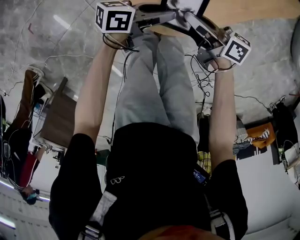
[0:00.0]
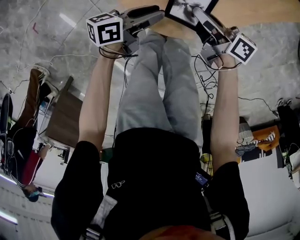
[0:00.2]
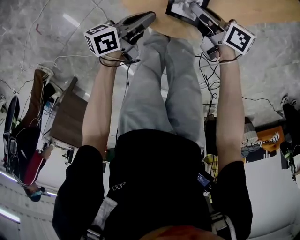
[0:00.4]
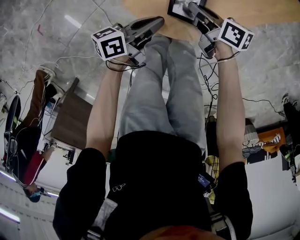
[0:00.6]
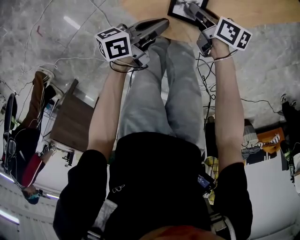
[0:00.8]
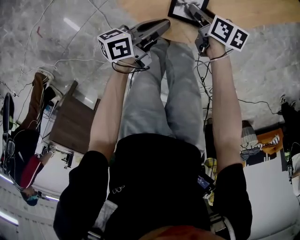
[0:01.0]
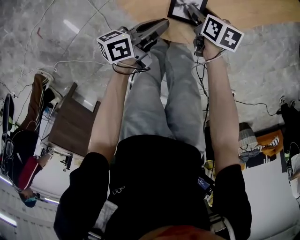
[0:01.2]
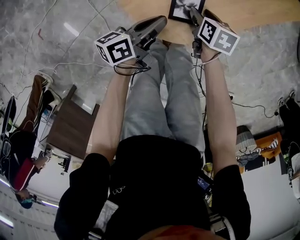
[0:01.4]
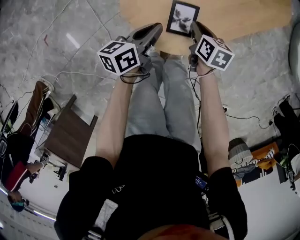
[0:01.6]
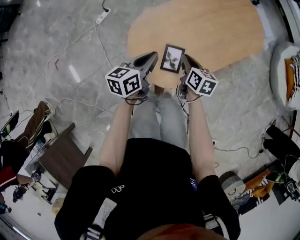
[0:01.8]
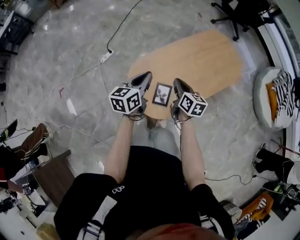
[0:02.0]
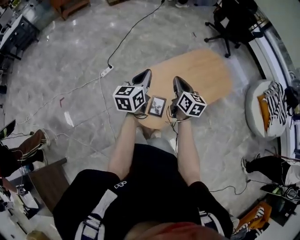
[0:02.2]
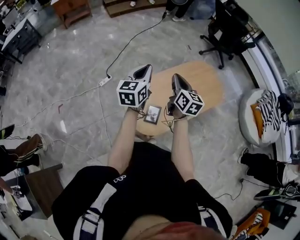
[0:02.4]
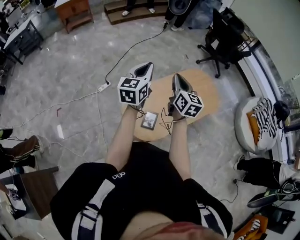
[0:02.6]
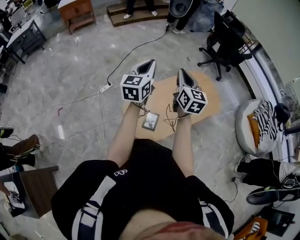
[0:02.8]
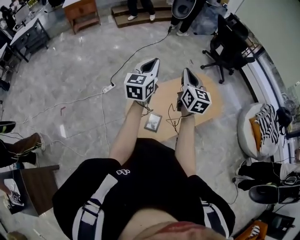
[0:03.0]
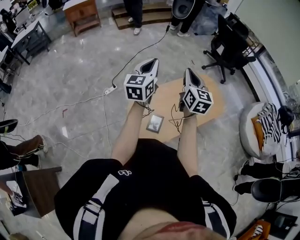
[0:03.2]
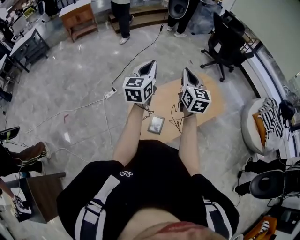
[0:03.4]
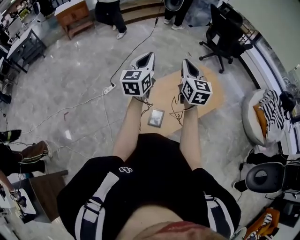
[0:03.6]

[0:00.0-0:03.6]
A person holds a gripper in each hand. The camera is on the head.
0:00.0 to 0:01.8: The right gripper goes approximately 10 cm upward, swivels about 50 degrees, and opens and closes again. The left gripper shifts some 20 cm upward, swivels approximately 40 degrees, and closes.
0:01.8 to 0:03.6: The grippers both shift upward by approximately 40 cm. The left gripper swivels approximately 50 degrees. Meanwhile the right gripper angles its fingers upward, by roughly 40 degrees.

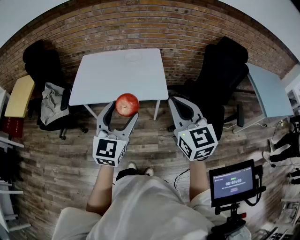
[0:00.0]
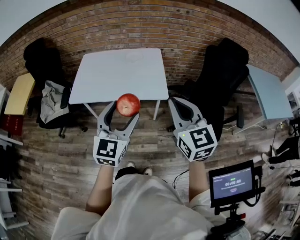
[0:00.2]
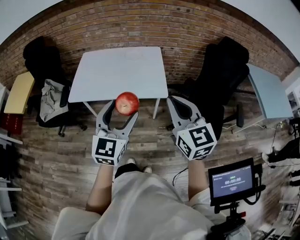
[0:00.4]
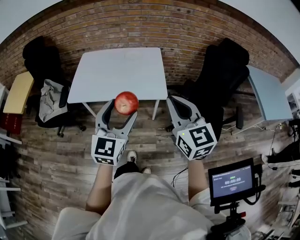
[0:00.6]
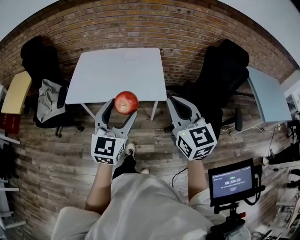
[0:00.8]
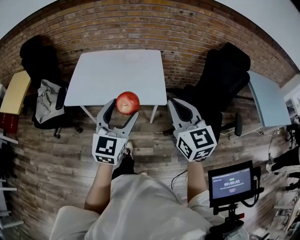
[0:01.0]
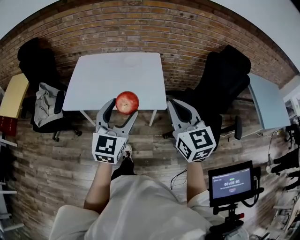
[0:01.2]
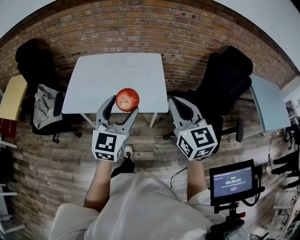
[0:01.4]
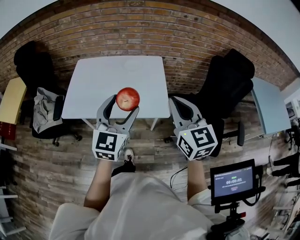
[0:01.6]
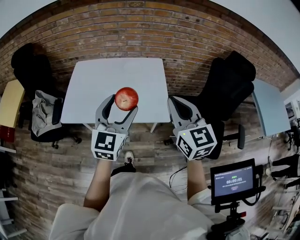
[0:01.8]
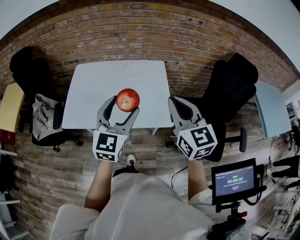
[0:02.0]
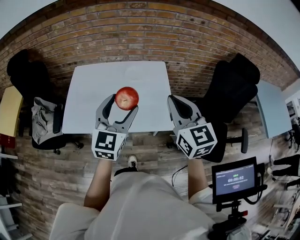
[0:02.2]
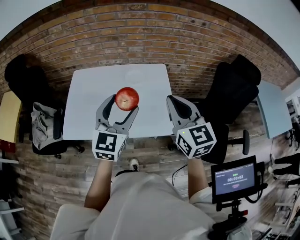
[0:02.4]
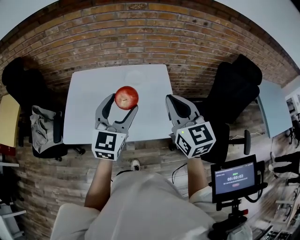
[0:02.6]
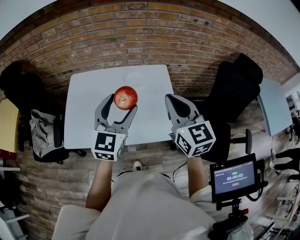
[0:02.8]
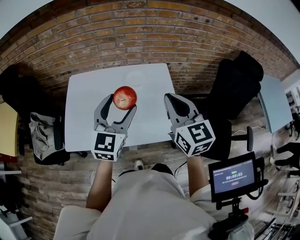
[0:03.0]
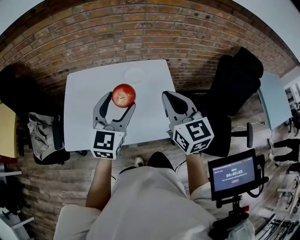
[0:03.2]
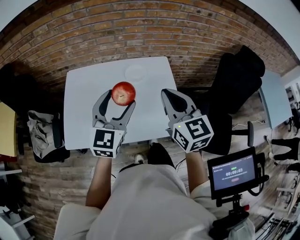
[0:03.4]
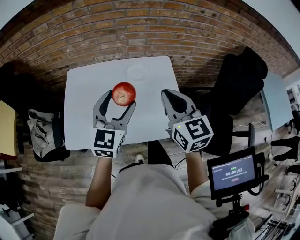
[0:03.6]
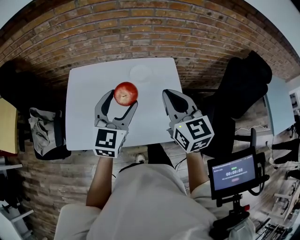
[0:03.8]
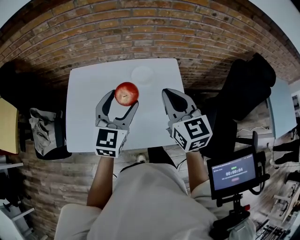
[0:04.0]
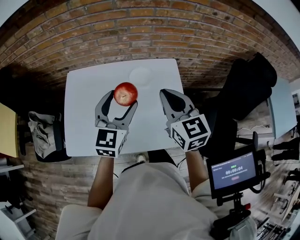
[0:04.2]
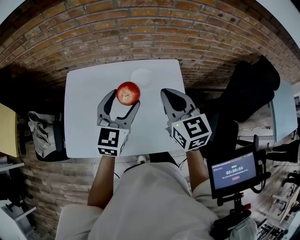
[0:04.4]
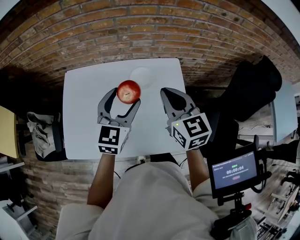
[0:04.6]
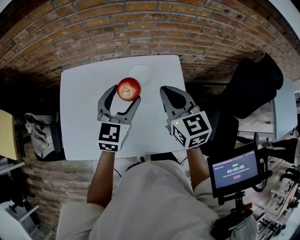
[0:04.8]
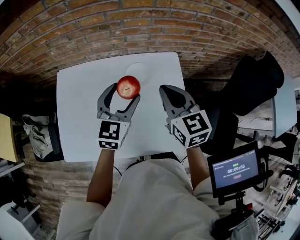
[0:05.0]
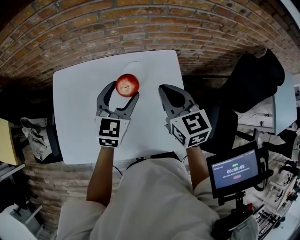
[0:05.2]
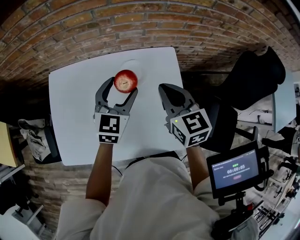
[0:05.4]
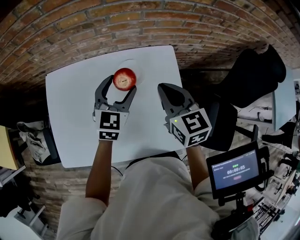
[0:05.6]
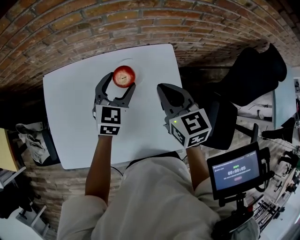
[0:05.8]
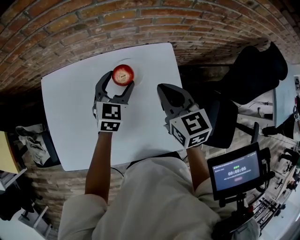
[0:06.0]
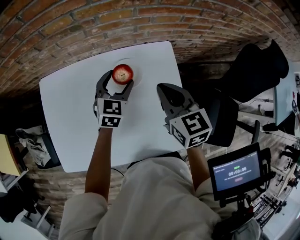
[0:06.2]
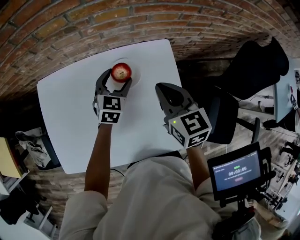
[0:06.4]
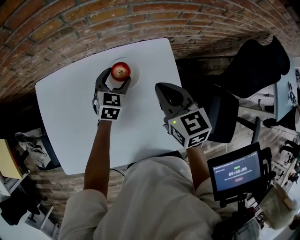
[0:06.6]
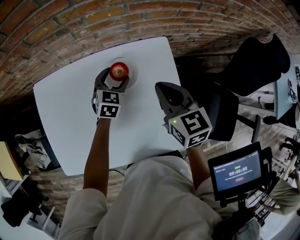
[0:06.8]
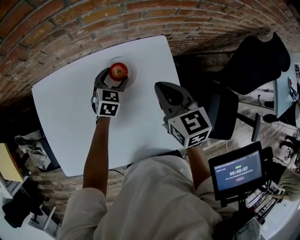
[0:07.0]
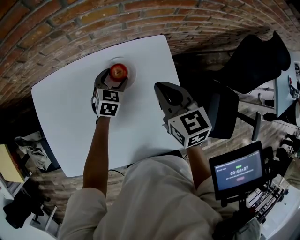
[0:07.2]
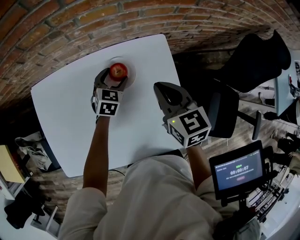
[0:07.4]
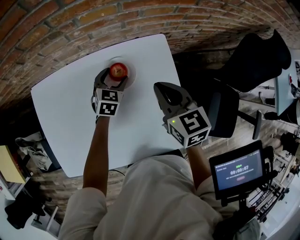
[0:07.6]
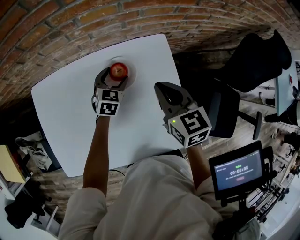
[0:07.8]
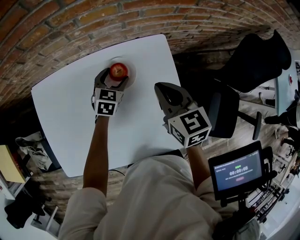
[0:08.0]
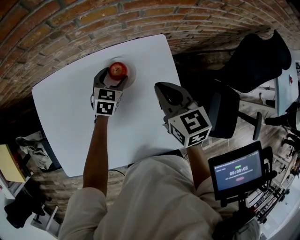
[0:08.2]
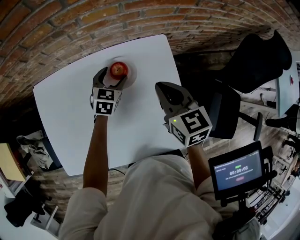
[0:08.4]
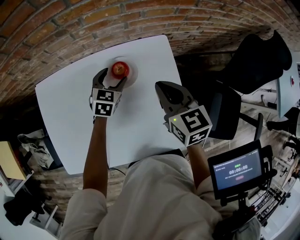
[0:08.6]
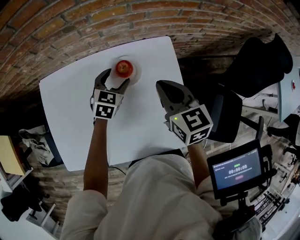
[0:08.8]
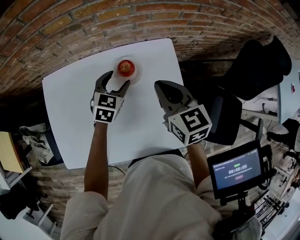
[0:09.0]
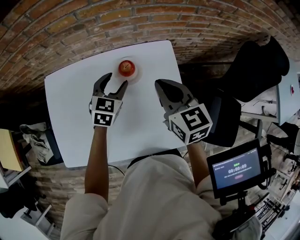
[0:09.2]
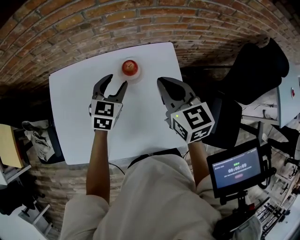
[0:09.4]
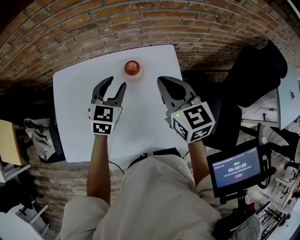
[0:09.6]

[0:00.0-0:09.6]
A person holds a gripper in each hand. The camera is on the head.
0:00.0 to 0:01.6: The two grippers go approximately 15 cm forward.
0:01.6 to 0:03.2: The right gripper goes approximately 25 cm forward and to the left. Meanwhile the left gripper goes about 25 cm forward.
0:03.2 to 0:04.8: Both grippers travel together forward and downward, about 20 cm.
0:04.8 to 0:06.4: The right gripper moves downward and forward, some 10 cm. Meanwhile the left gripper moves downward and forward, some 25 cm.
0:06.4 to 0:08.0: The left gripper is displaced downward by about 5 cm.
0:08.0 to 0:09.6: The left gripper travels upward and backward by roughly 20 cm, and closes up, while the right gripper goes roughly 10 cm upward and backward.

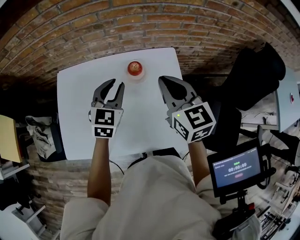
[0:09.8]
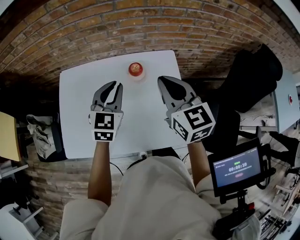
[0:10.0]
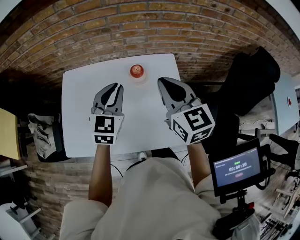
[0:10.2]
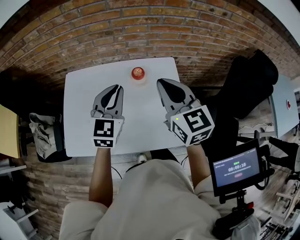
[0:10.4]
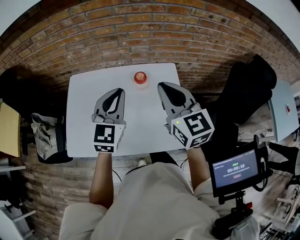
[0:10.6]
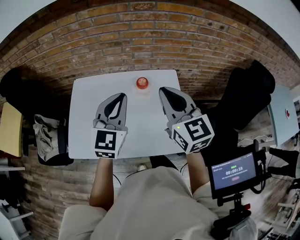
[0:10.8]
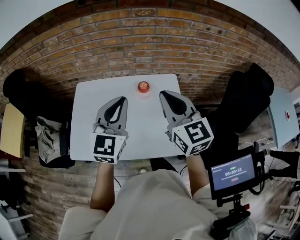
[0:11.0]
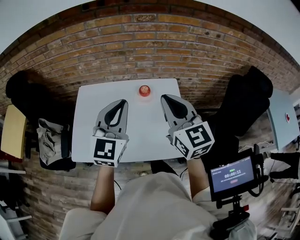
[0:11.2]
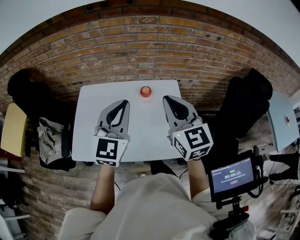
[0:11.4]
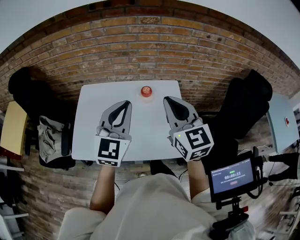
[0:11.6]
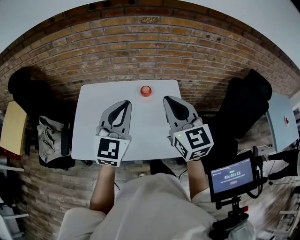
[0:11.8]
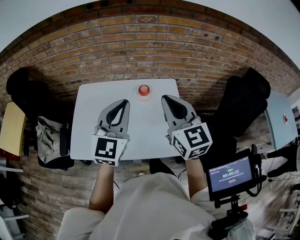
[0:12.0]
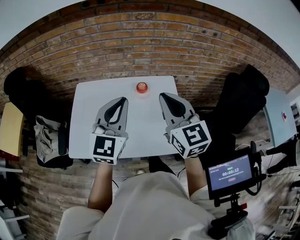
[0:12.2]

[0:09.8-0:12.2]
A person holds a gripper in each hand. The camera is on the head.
0:09.8 to 0:11.0: The left gripper moves upward and backward, approximately 20 cm, and rotates some 20 degrees; the right gripper is displaced backward and upward by roughly 15 cm.
0:11.0 to 0:12.2: There are only small adjustments of the grippers.

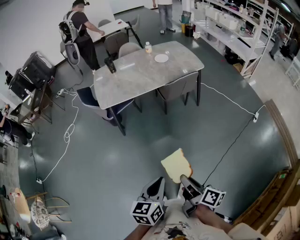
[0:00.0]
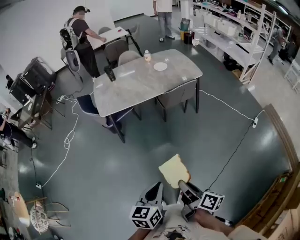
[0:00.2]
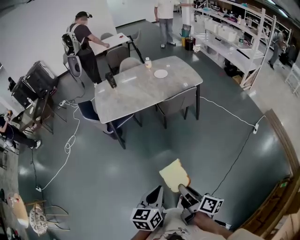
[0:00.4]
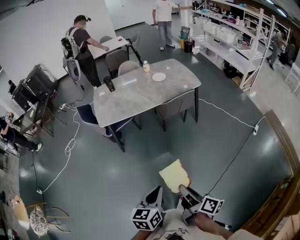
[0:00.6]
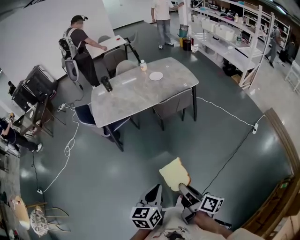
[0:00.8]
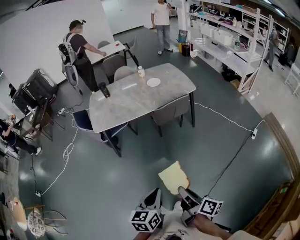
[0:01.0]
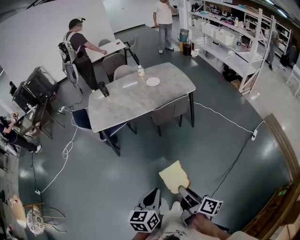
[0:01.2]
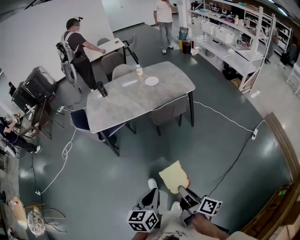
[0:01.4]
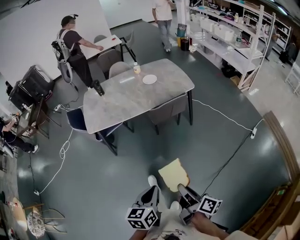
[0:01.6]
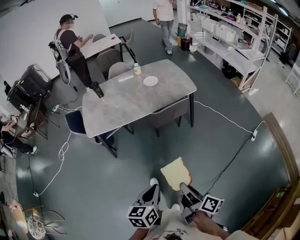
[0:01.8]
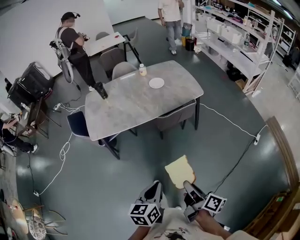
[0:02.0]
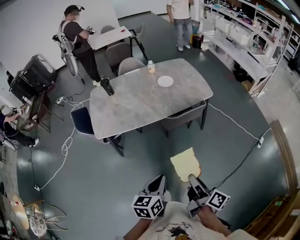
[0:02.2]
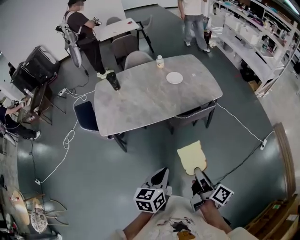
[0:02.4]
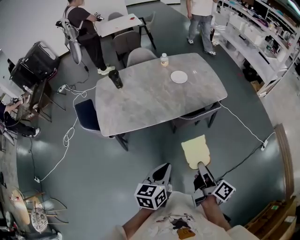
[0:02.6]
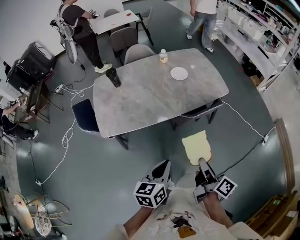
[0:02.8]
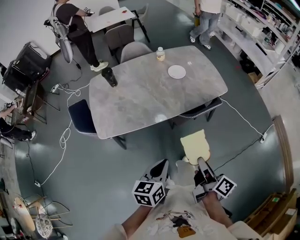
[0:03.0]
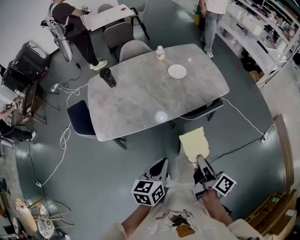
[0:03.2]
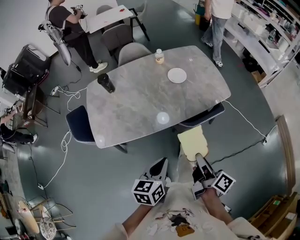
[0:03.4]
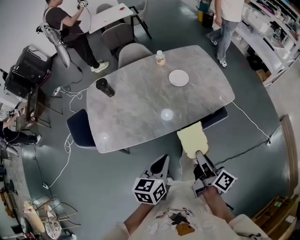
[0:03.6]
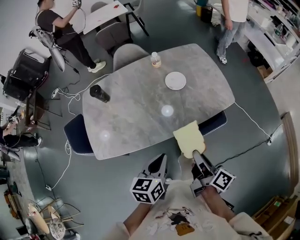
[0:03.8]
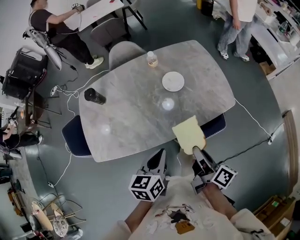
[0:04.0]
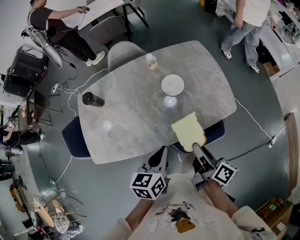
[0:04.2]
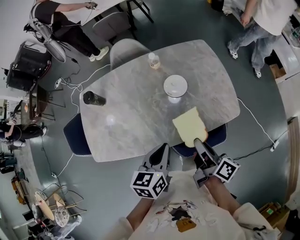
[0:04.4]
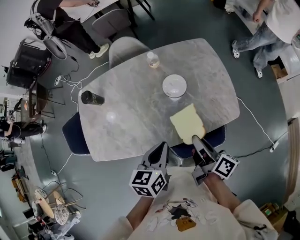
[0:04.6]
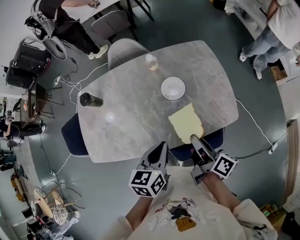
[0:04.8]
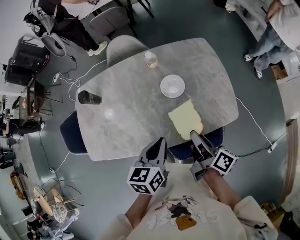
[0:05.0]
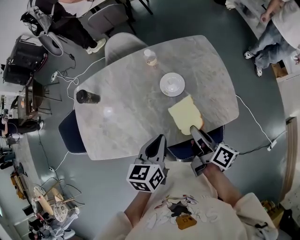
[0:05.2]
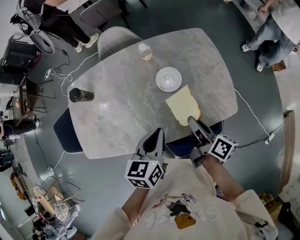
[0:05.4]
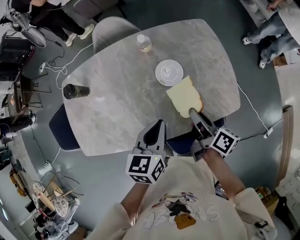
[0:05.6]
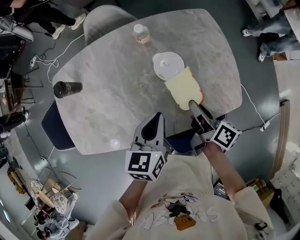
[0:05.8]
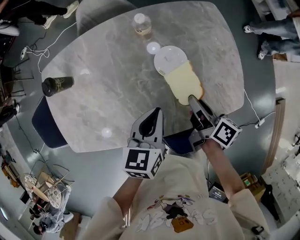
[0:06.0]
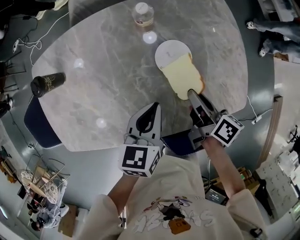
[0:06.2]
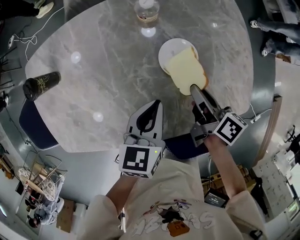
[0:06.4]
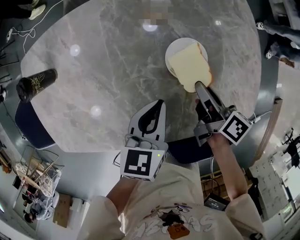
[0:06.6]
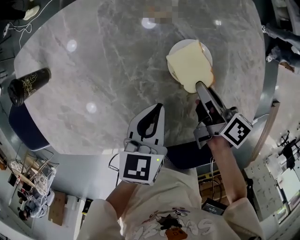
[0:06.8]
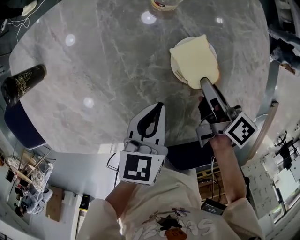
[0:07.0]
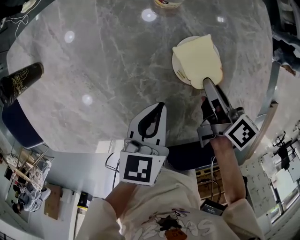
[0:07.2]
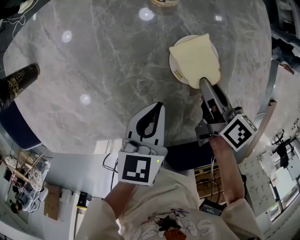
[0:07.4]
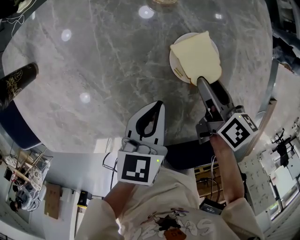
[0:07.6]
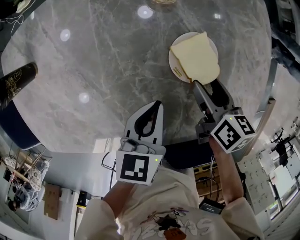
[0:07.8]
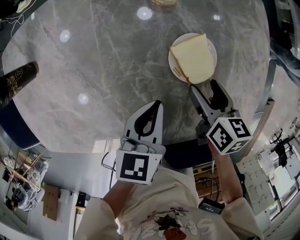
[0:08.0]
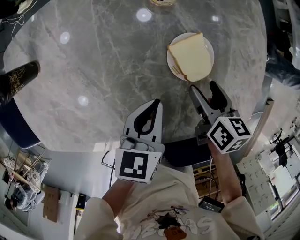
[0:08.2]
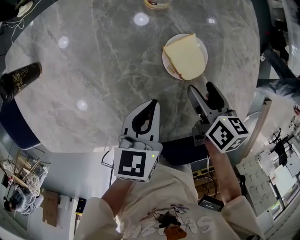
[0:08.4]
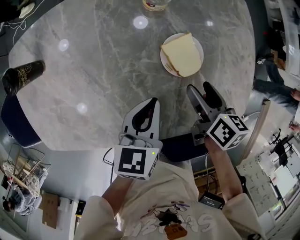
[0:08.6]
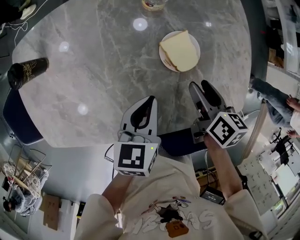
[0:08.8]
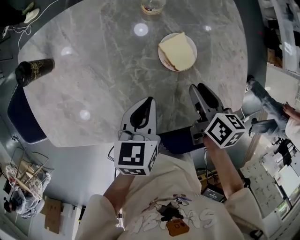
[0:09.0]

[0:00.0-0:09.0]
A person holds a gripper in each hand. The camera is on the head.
0:00.0 to 0:01.6: The grippers both shift to the right and forward by roughly 15 cm.
0:01.6 to 0:03.0: The right gripper moves forward, roughly 35 cm, while the left gripper heads forward and to the left, covering roughly 35 cm.
0:03.0 to 0:04.4: The grippers both shift forward by about 40 cm.
0:04.4 to 0:06.0: Both grippers move forward and downward, roughly 20 cm.
0:06.0 to 0:07.6: The left gripper travels downward by approximately 15 cm, while the right gripper travels downward and forward by some 15 cm, turns by roughly 20 degrees, and opens up.
0:07.6 to 0:09.0: The right gripper goes about 10 cm upward and backward, while the left gripper is displaced upward by roughly 5 cm.
